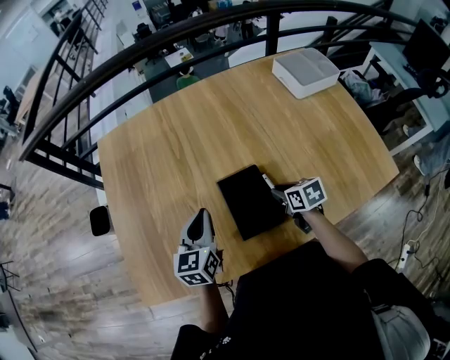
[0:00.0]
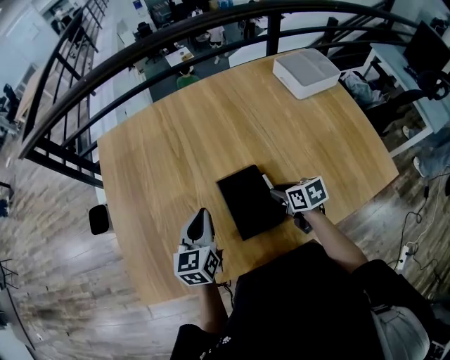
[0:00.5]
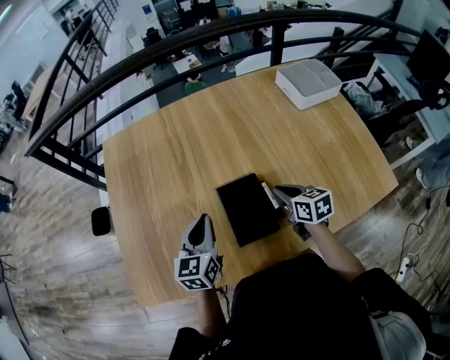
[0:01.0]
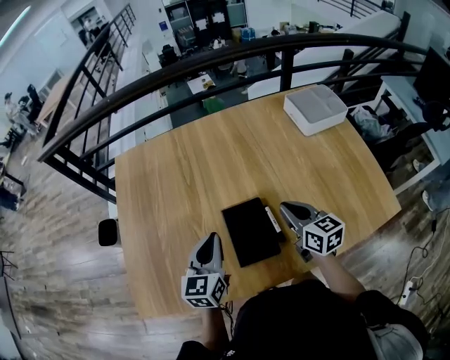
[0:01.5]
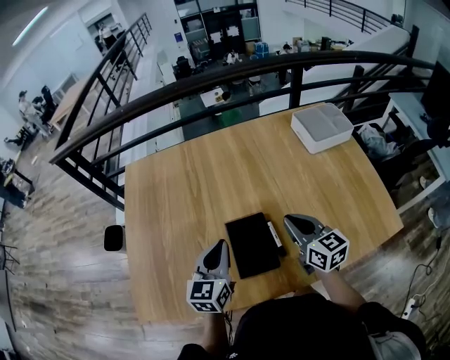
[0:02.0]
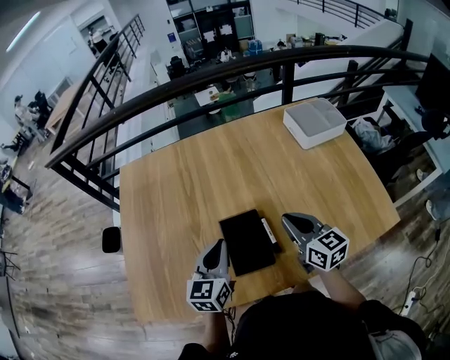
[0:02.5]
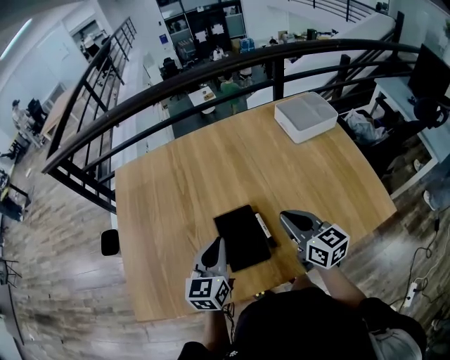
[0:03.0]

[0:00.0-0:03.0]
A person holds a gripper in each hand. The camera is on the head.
0:00.0 to 0:01.5: The right gripper moves upward, roughly 15 cm, and swivels some 30 degrees. The left gripper ends up roughly 5 cm from where it was.
0:01.5 to 0:03.0: The left gripper shifts by about 5 cm. The right gripper moves approximately 5 cm.

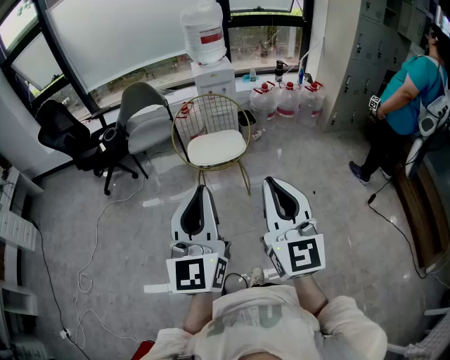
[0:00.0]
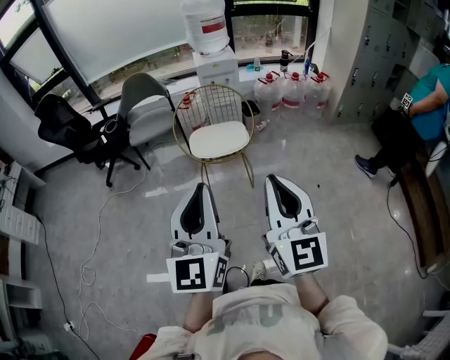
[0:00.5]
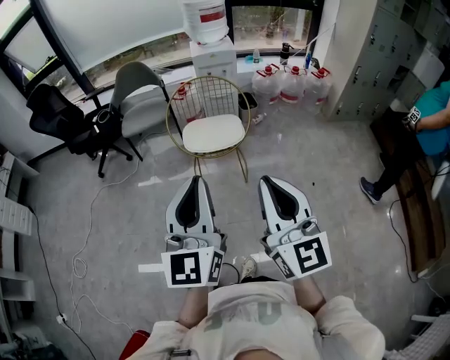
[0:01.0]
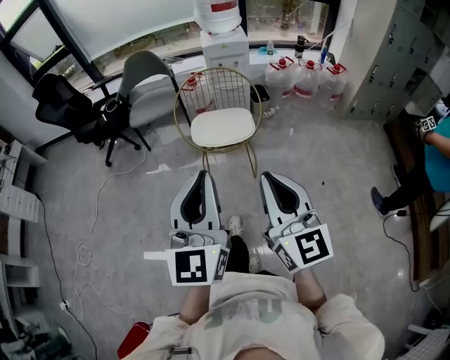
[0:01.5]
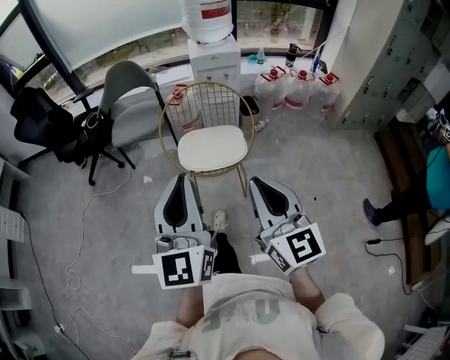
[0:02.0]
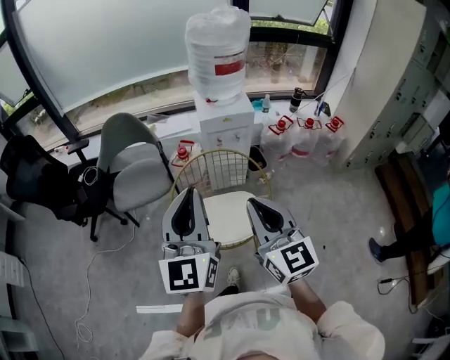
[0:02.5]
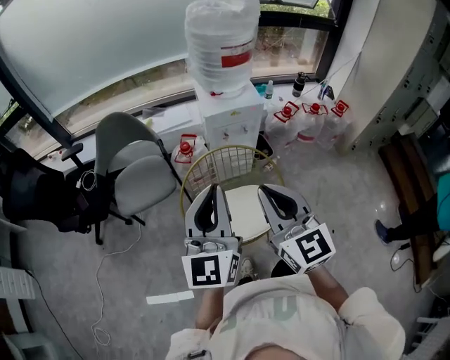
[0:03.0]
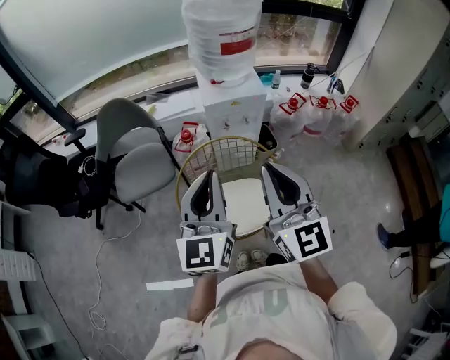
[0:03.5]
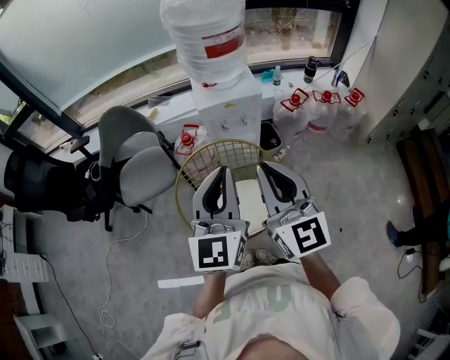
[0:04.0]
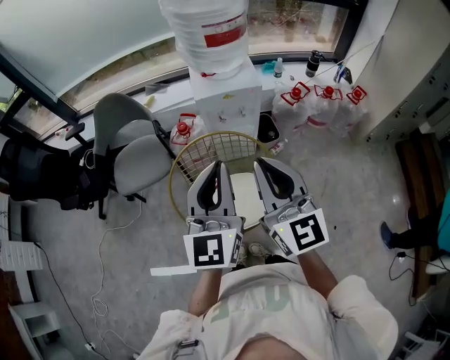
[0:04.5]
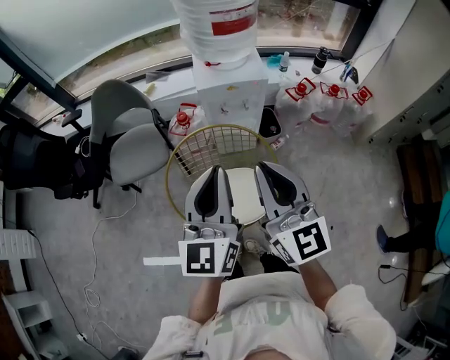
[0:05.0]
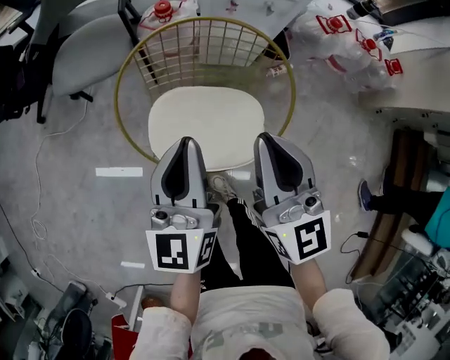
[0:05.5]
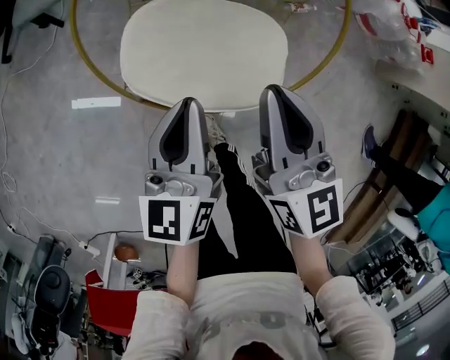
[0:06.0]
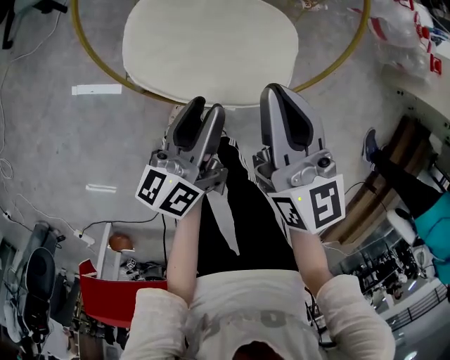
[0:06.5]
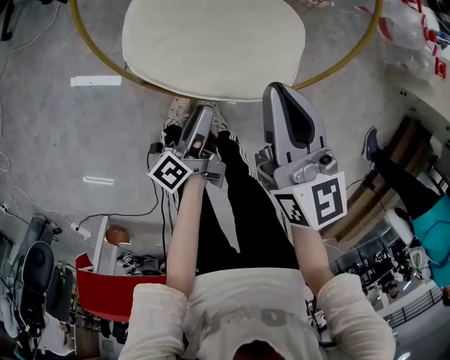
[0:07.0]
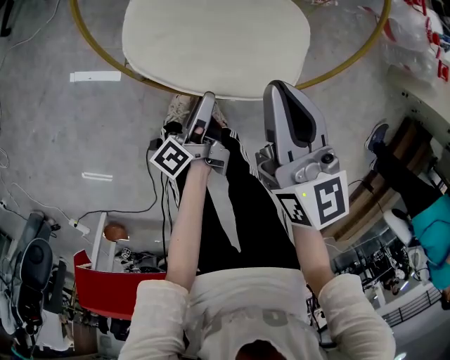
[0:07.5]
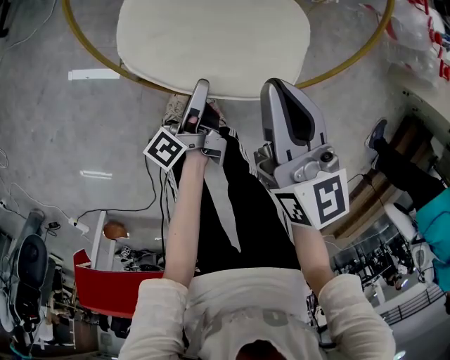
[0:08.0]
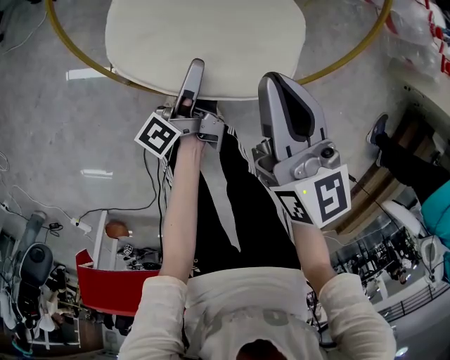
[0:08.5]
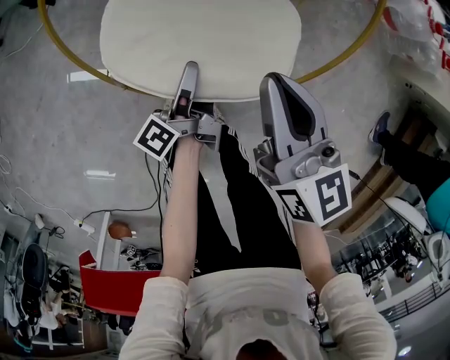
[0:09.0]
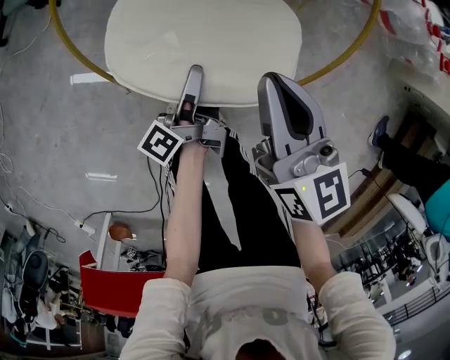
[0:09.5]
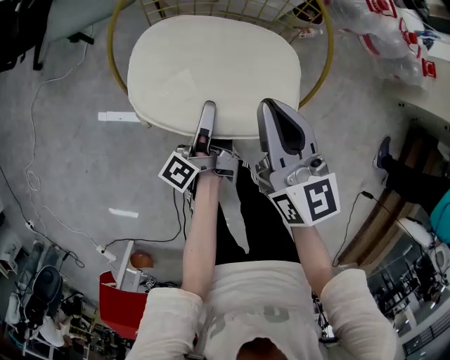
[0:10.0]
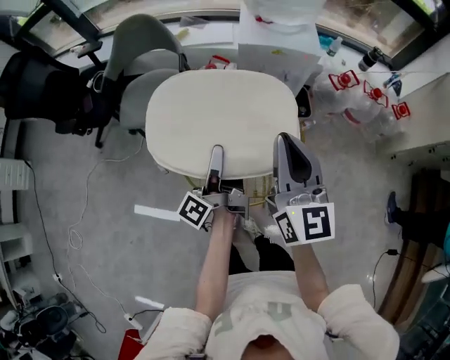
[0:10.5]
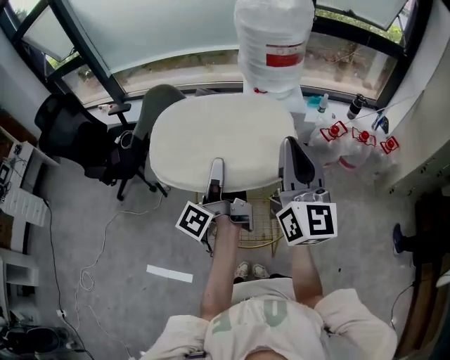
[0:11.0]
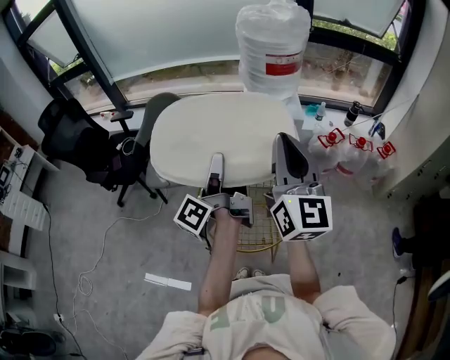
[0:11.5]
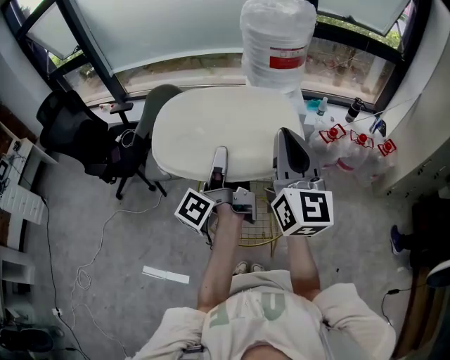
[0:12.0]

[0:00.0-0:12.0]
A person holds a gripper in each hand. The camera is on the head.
0:00.0 to 0:02.0: Both grippers travel together forward, roughly 25 cm.
0:02.0 to 0:04.0: The two grippers travel together, forward, approximately 40 cm.
0:04.0 to 0:06.0: Both grippers move downward, roughly 40 cm. The right gripper swivels about 30 degrees; the left gripper changes its angle by about 40 degrees.
0:06.0 to 0:08.0: The left gripper goes some 20 cm downward, rotates around the line of its fingers by about 70 degrees, counterclockwise from behind, and opens up. Meanwhile the right gripper heads downward, covering about 5 cm.
0:08.0 to 0:10.0: The left gripper shifts about 15 cm upward and forward, and closes; the right gripper heads upward, covering approximately 10 cm.
0:10.0 to 0:12.0: The two grippers go about 50 cm upward. The left gripper changes its angle by approximately 30 degrees, while the right gripper tips its fingers upward by approximately 30 degrees.

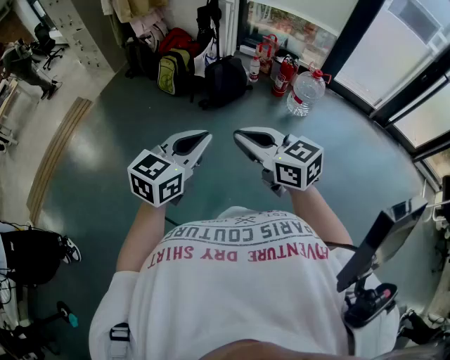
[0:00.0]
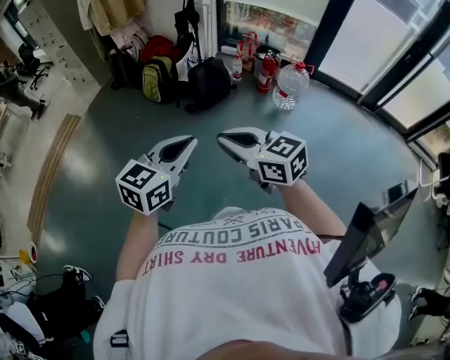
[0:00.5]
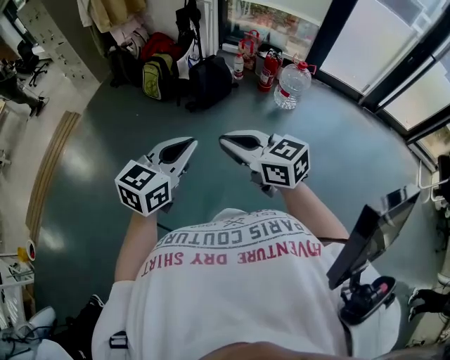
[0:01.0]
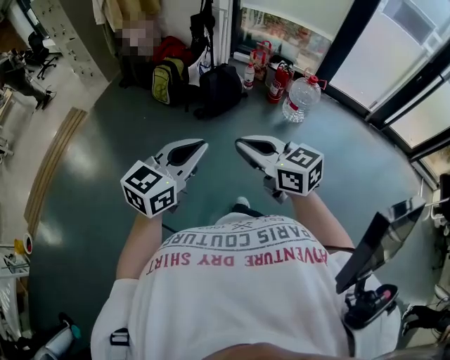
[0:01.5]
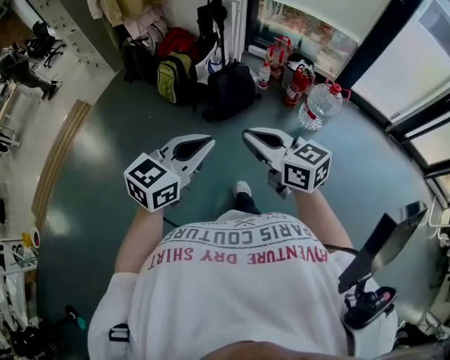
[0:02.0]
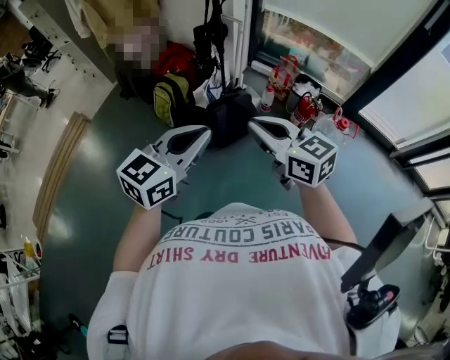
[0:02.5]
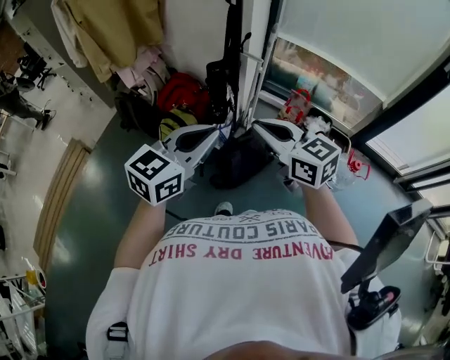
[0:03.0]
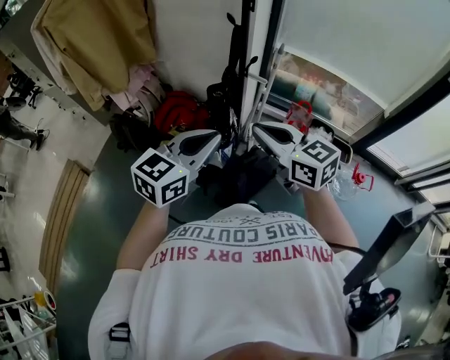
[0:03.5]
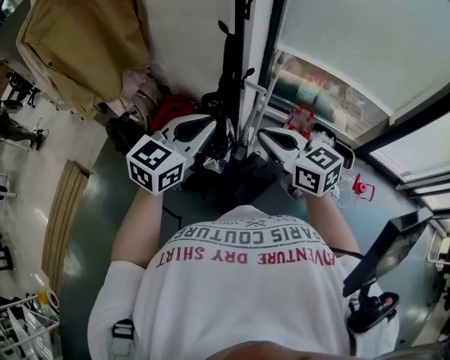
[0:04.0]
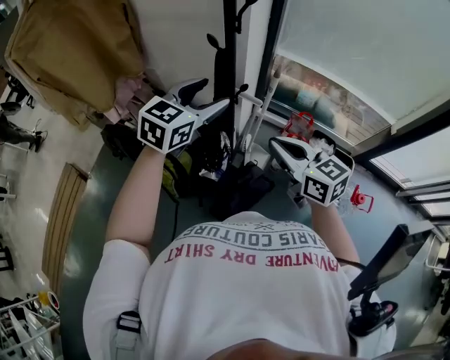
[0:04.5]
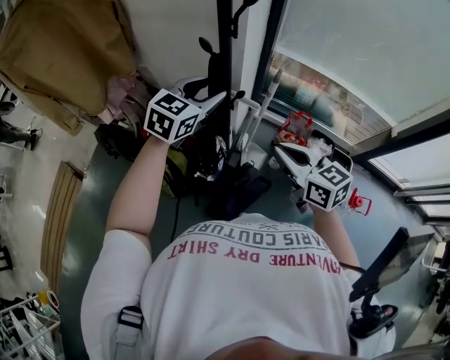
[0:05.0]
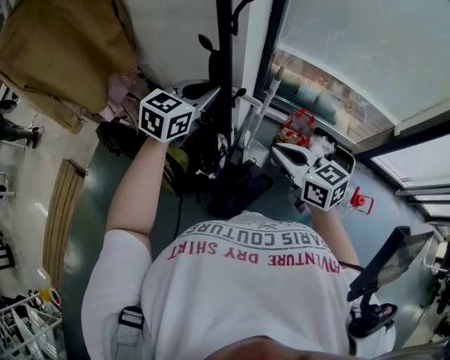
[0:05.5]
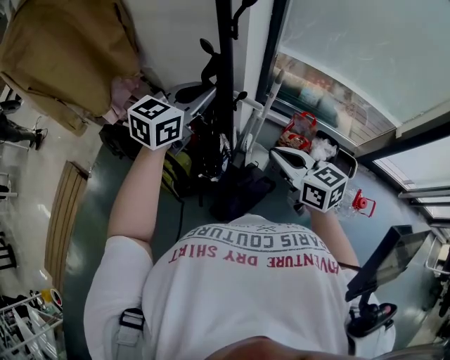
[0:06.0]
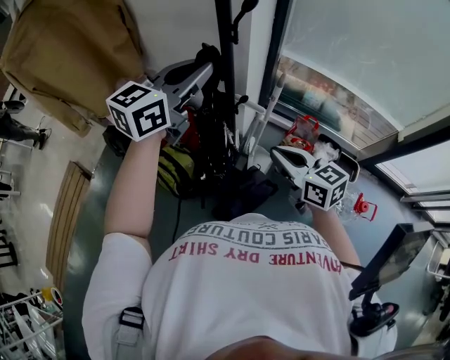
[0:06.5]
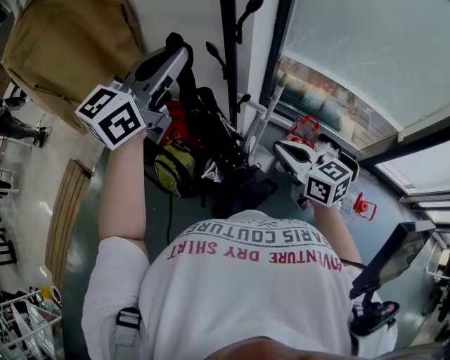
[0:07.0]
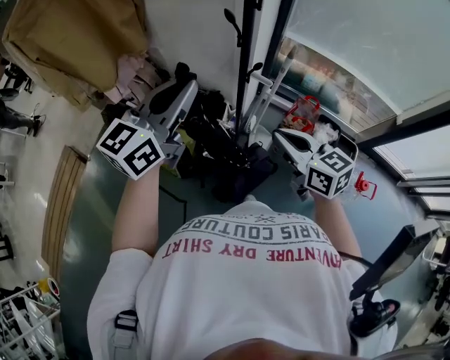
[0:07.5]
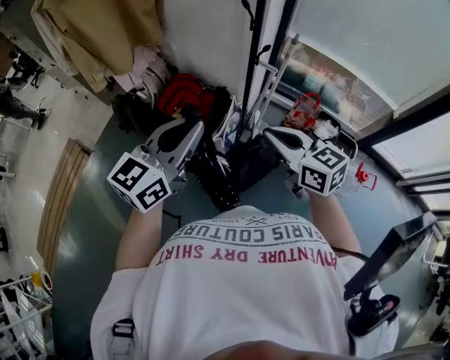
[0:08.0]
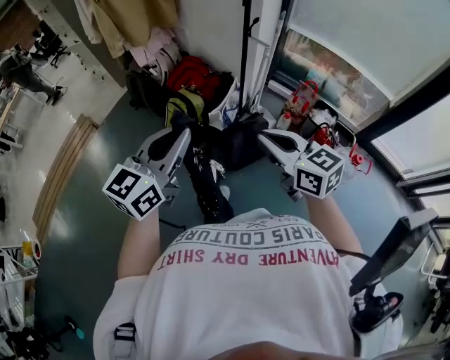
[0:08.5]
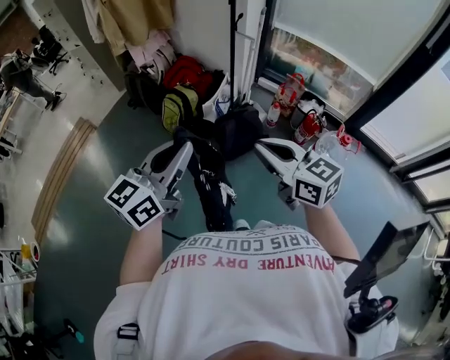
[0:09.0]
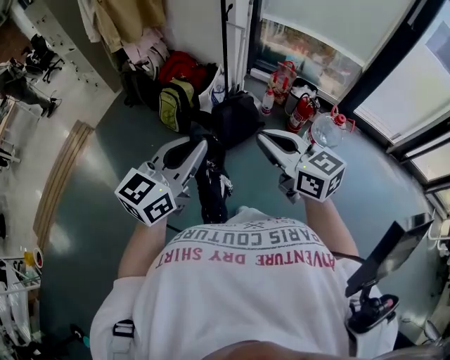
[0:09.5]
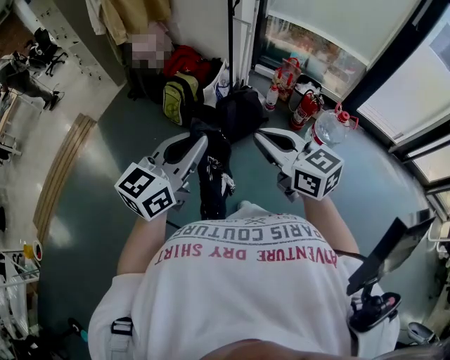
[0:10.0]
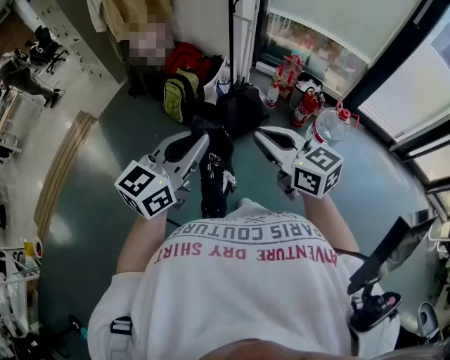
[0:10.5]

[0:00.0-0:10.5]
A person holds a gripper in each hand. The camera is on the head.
0:00.0 to 0:02.0: The grippers both shift forward by roughly 25 cm.
0:02.0 to 0:04.0: The two grippers travel together, forward, approximately 80 cm.
0:04.0 to 0:06.5: The right gripper travels forward, to the right and downward by some 15 cm. Meanwhile the left gripper is displaced forward by roughly 20 cm, and opens, then closes again.
0:06.5 to 0:08.5: Both grippers are carried backward, about 50 cm.
0:08.5 to 0:10.5: Both grippers travel together backward, approximately 30 cm.

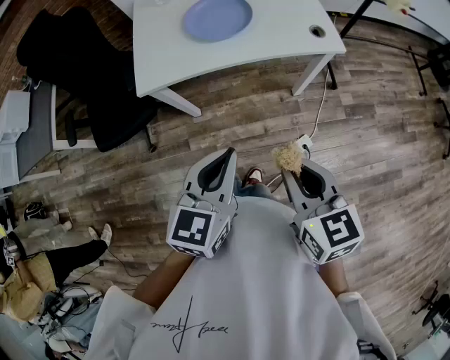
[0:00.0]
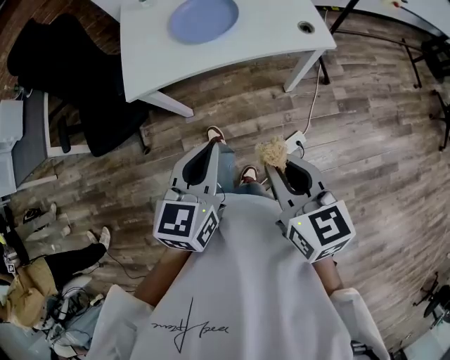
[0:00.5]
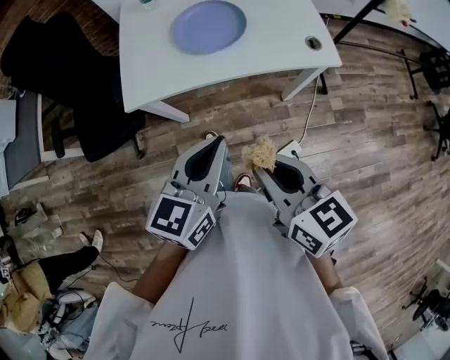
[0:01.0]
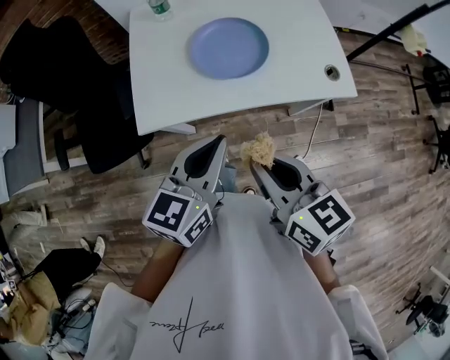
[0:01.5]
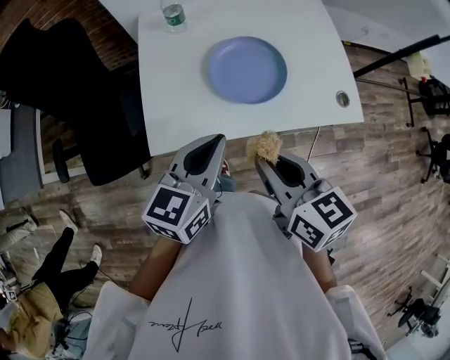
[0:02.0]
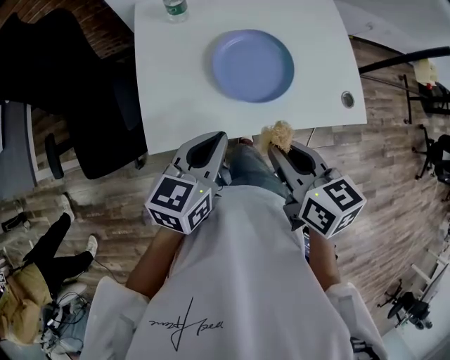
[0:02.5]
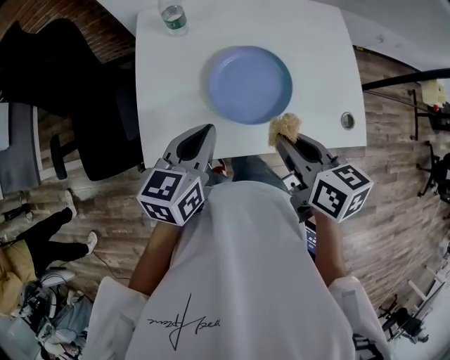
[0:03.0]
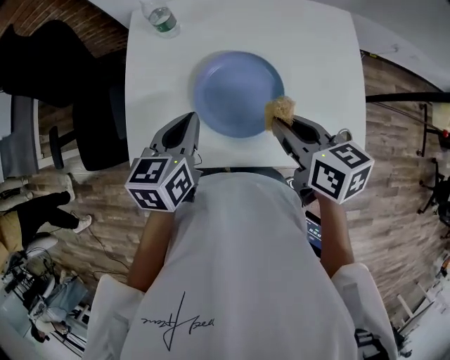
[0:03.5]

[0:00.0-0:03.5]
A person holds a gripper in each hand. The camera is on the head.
0:00.0 to 0:02.0: The right gripper shifts some 30 cm forward and to the left; the left gripper travels forward by some 25 cm.
0:02.0 to 0:03.5: The right gripper moves forward, to the right and downward, some 25 cm. The left gripper heads forward and downward, covering some 15 cm, and swivels roughly 30 degrees.
